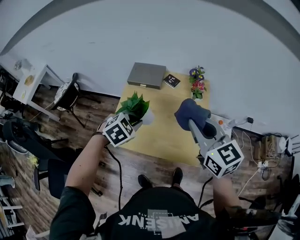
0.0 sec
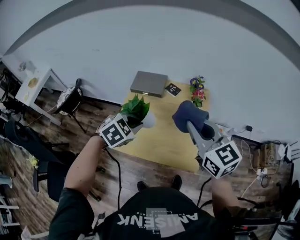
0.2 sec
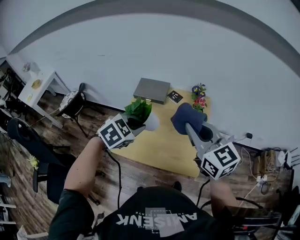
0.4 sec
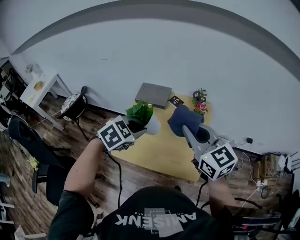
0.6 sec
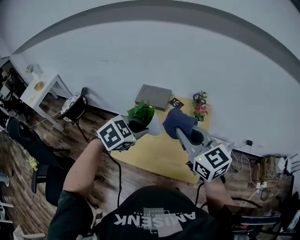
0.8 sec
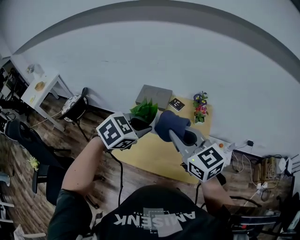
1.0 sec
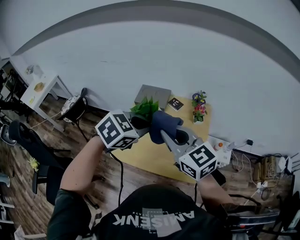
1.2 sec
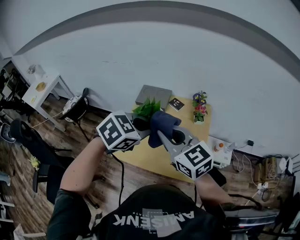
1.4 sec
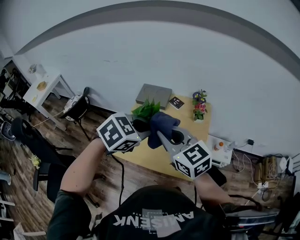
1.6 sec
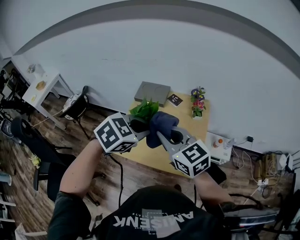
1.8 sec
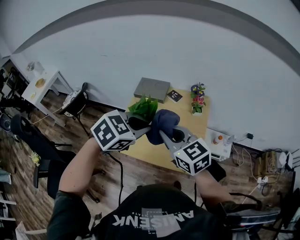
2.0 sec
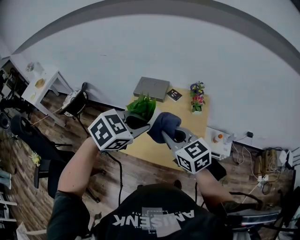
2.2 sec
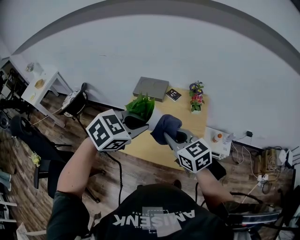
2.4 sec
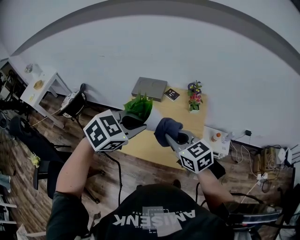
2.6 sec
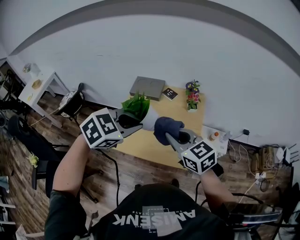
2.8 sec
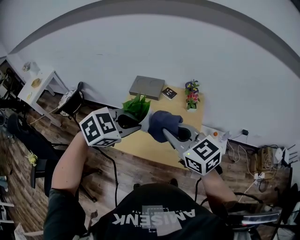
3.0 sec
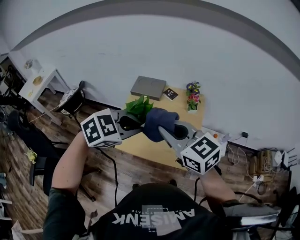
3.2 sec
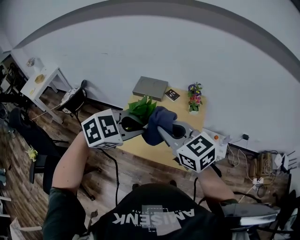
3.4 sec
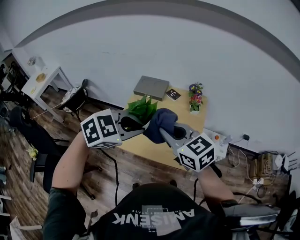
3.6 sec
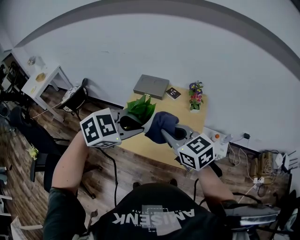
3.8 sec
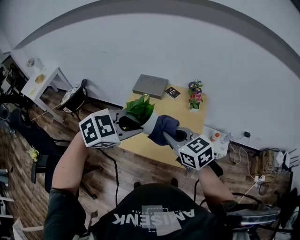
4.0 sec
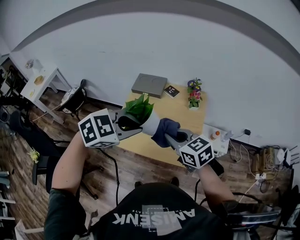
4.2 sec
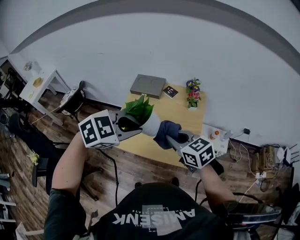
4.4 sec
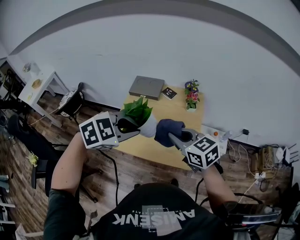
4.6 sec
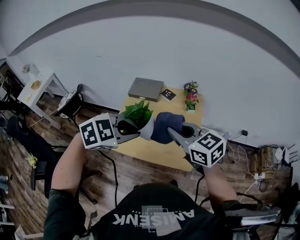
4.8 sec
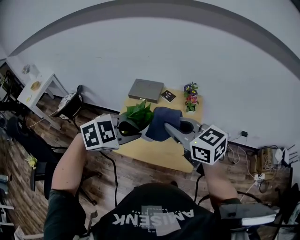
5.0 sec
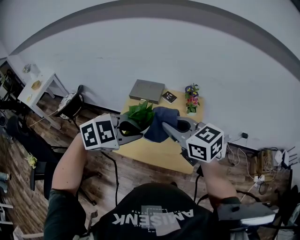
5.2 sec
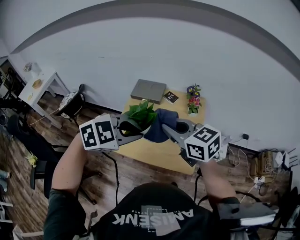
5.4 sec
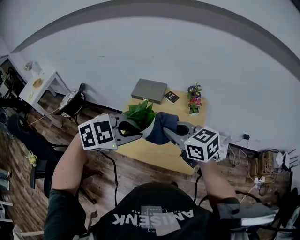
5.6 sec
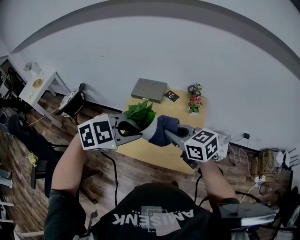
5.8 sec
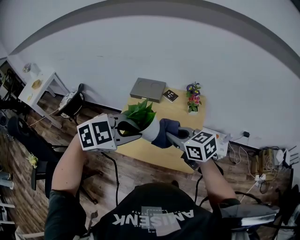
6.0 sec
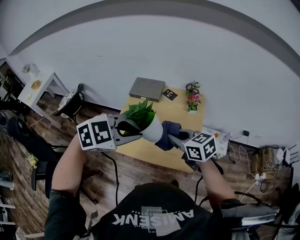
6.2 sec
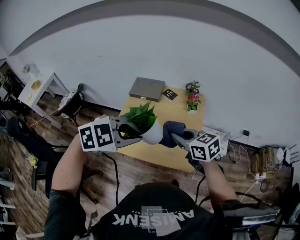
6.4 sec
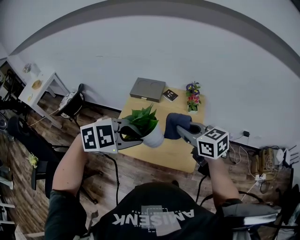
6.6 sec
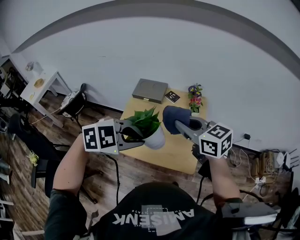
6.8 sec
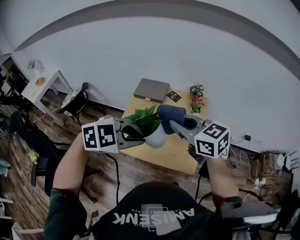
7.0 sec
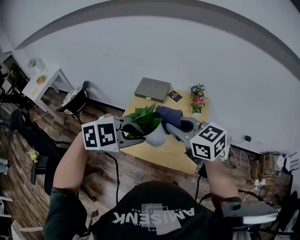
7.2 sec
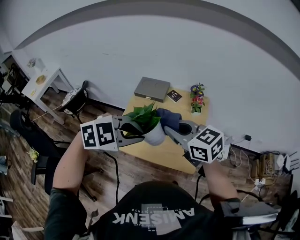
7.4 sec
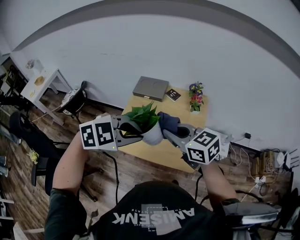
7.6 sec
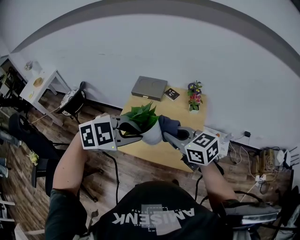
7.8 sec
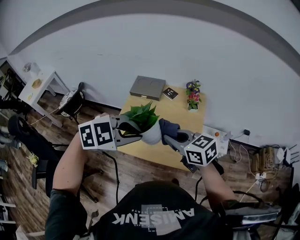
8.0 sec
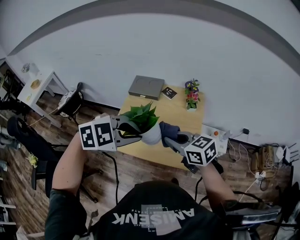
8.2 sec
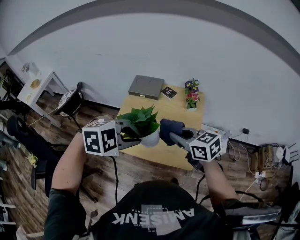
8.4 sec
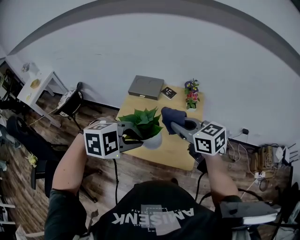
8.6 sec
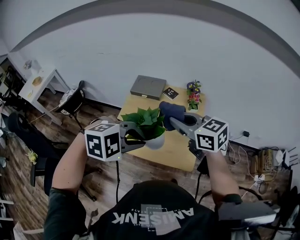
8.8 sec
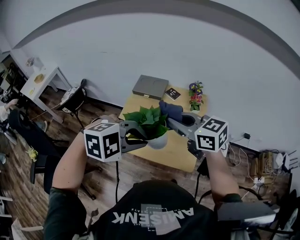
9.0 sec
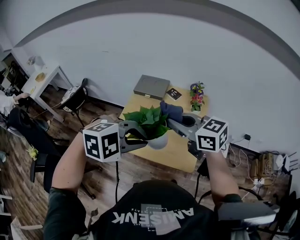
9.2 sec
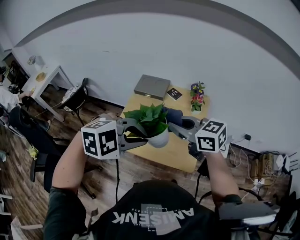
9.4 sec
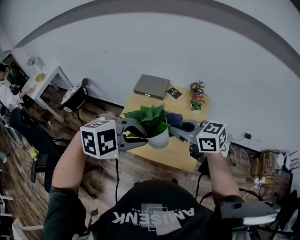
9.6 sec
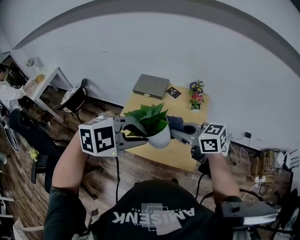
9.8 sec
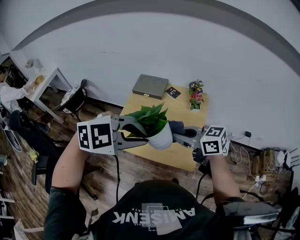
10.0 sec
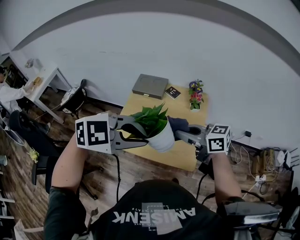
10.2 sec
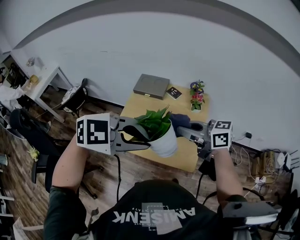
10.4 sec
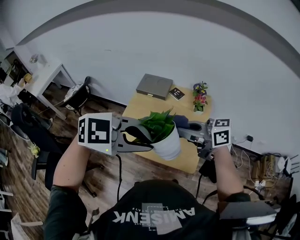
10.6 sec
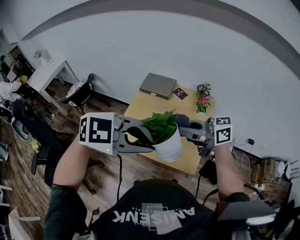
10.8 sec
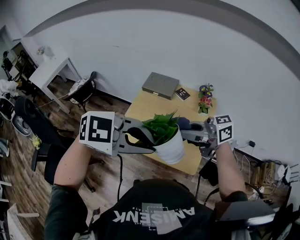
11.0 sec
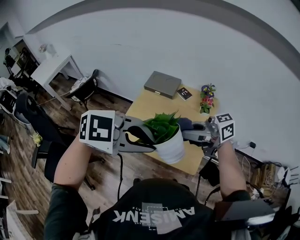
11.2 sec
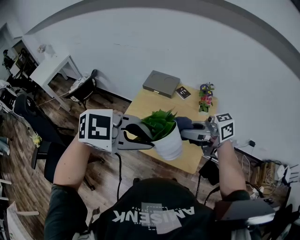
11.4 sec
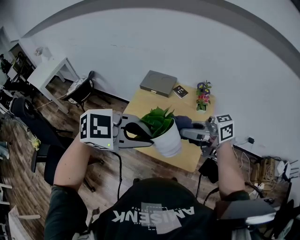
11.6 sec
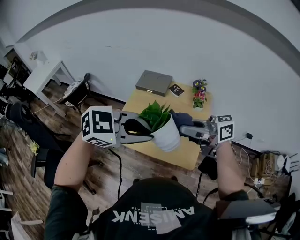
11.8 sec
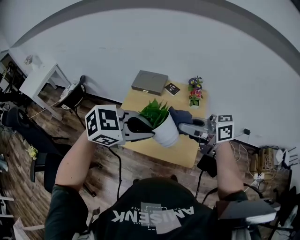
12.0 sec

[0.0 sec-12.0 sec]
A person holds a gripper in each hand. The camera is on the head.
0.0 sec to 1.6 sec: The right gripper moves to the left, approximately 10 cm, while the left gripper is displaced upward by approximately 15 cm.
1.6 sec to 3.0 sec: The left gripper shifts roughly 5 cm backward. Meanwhile the right gripper travels downward and back again, about 10 cm each way.
3.0 sec to 4.4 sec: The right gripper moves downward, some 10 cm.
4.4 sec to 6.0 sec: The right gripper moves about 10 cm upward and comes back.
9.0 sec to 10.4 sec: The left gripper shifts by approximately 5 cm, and turns by about 20 degrees.

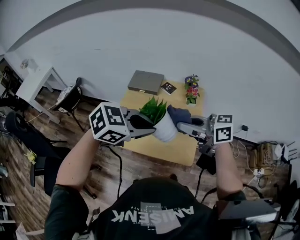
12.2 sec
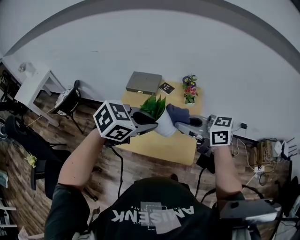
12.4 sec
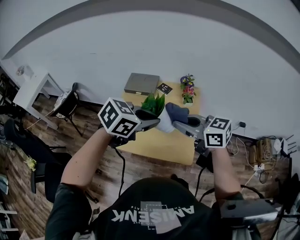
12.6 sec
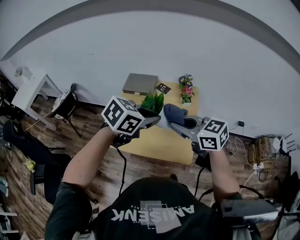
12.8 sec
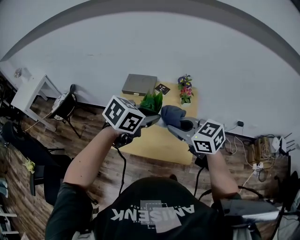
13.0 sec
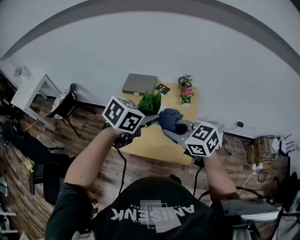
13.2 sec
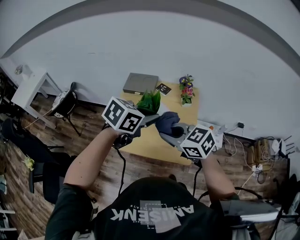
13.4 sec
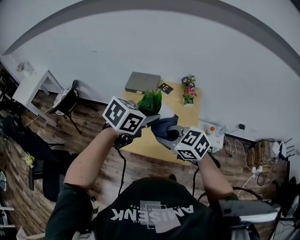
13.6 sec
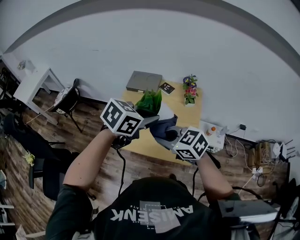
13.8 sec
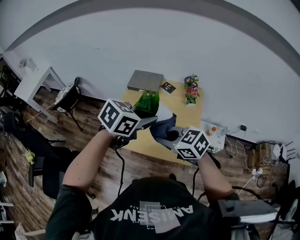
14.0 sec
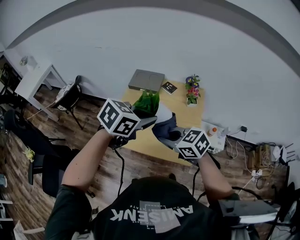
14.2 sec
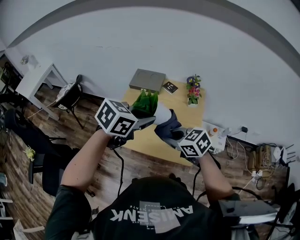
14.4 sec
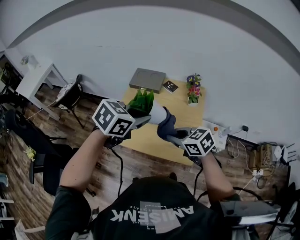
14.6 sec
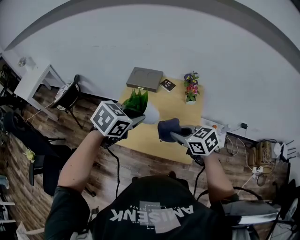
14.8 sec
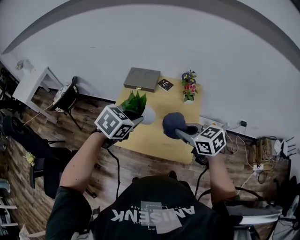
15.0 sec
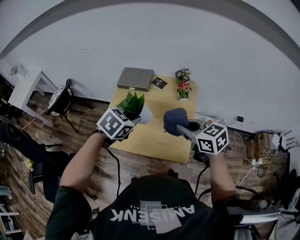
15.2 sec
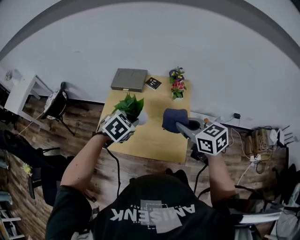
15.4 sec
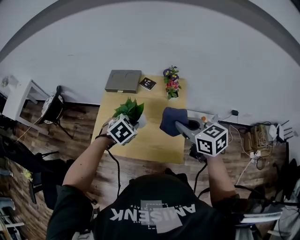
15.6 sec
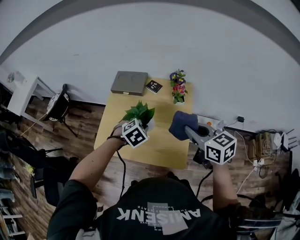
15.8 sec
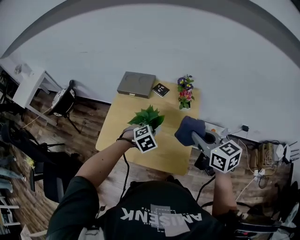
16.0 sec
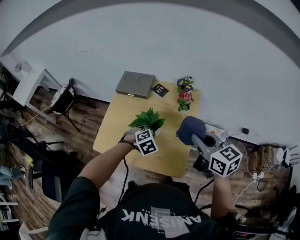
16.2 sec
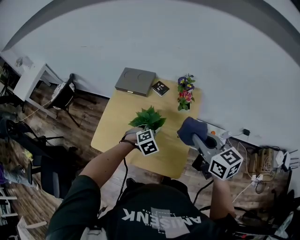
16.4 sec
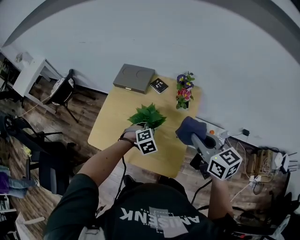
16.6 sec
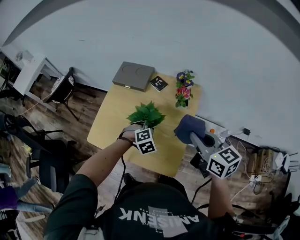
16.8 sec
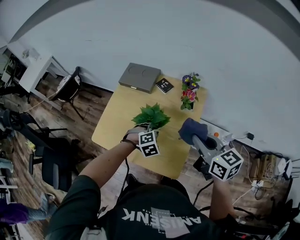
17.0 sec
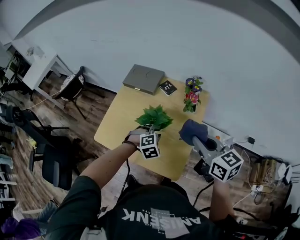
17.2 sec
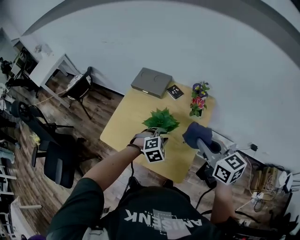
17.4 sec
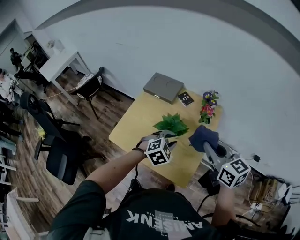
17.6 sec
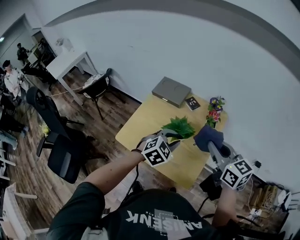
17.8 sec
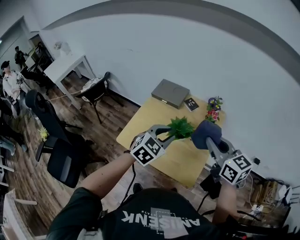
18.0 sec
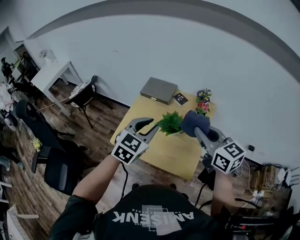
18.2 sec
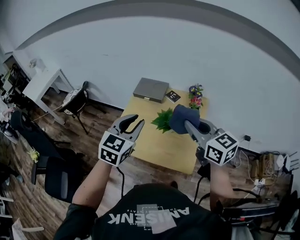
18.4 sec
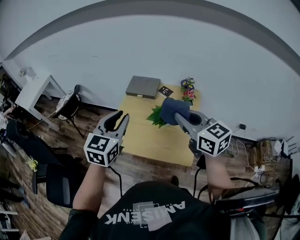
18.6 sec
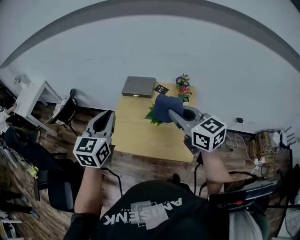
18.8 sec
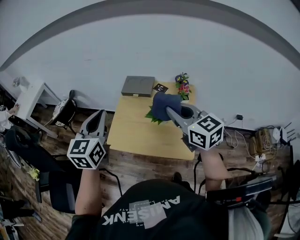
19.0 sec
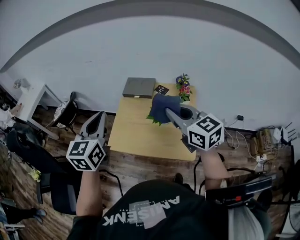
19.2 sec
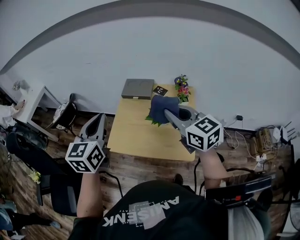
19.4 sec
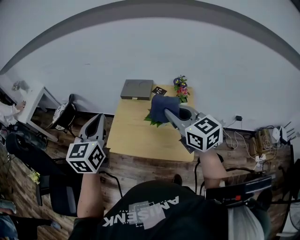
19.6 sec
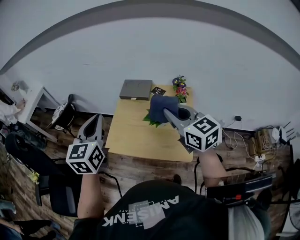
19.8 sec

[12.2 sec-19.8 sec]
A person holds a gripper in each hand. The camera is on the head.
12.2 sec to 13.8 sec: The right gripper changes place by approximately 10 cm, and rotates roughly 30 degrees, while the left gripper changes place by approximately 5 cm, and rotates roughly 20 degrees.
13.8 sec to 15.2 sec: The right gripper changes place by approximately 15 cm, and changes its angle by roughly 20 degrees. Meanwhile the left gripper is displaced downward by roughly 10 cm, and turns by approximately 20 degrees.
15.2 sec to 16.8 sec: The right gripper shifts about 15 cm to the right and forward, while the left gripper goes some 25 cm downward and to the right, and changes its angle by some 30 degrees.
16.8 sec to 18.2 sec: The left gripper is displaced upward and to the left by some 30 cm, and tilts its fingers about 40 degrees upward, while the right gripper travels to the left and upward by roughly 15 cm.
18.2 sec to 19.8 sec: The right gripper shifts about 10 cm to the left, while the left gripper shifts roughly 20 cm to the left and upward, changes its angle by approximately 30 degrees, and closes its fingers.

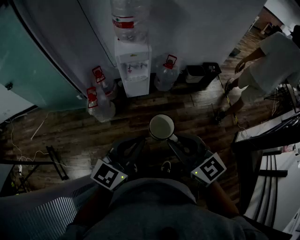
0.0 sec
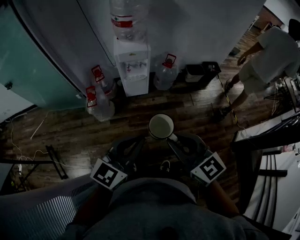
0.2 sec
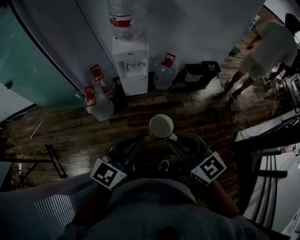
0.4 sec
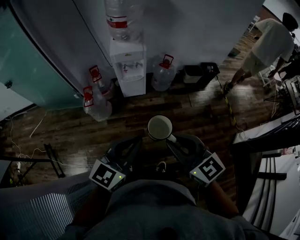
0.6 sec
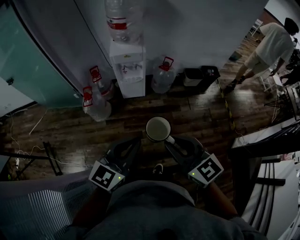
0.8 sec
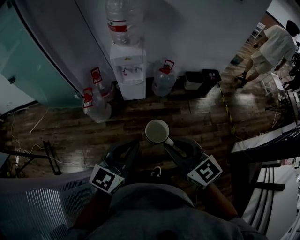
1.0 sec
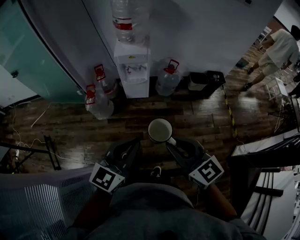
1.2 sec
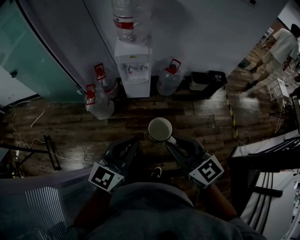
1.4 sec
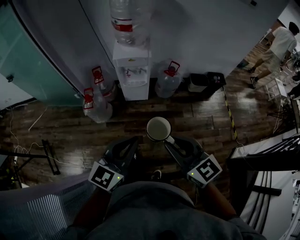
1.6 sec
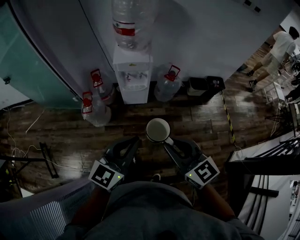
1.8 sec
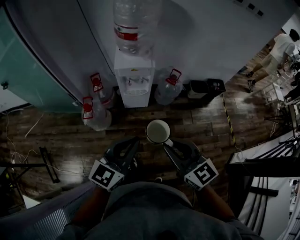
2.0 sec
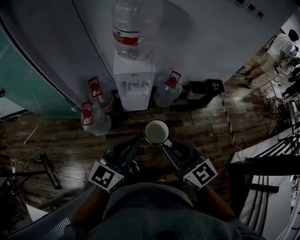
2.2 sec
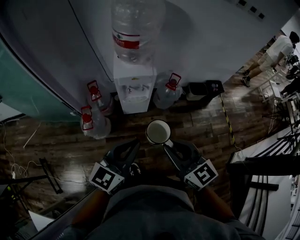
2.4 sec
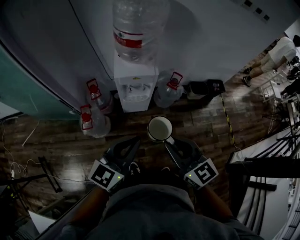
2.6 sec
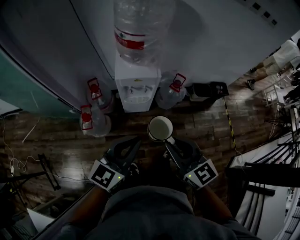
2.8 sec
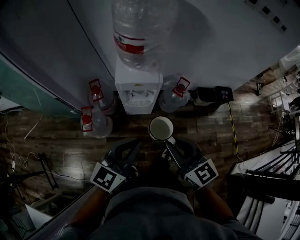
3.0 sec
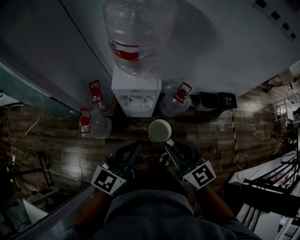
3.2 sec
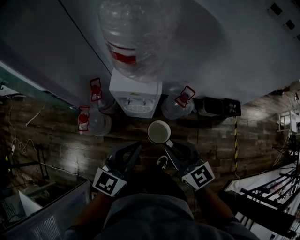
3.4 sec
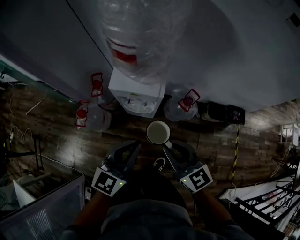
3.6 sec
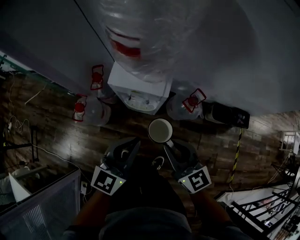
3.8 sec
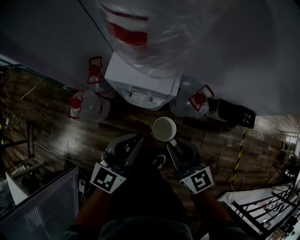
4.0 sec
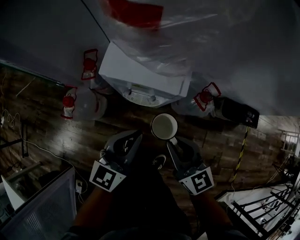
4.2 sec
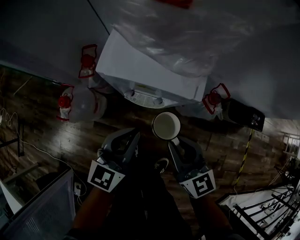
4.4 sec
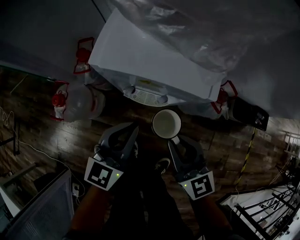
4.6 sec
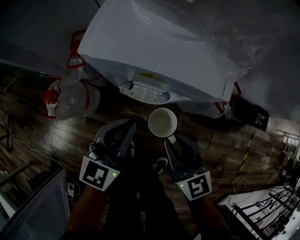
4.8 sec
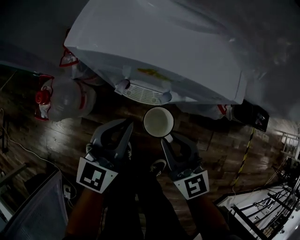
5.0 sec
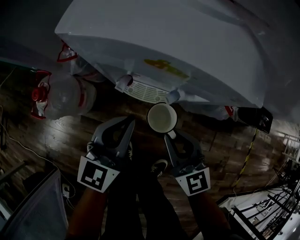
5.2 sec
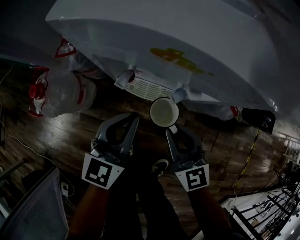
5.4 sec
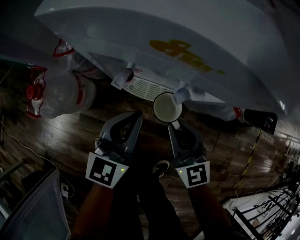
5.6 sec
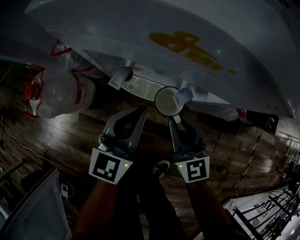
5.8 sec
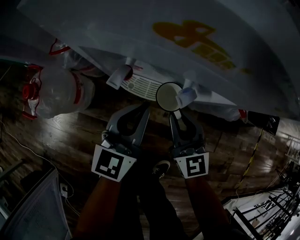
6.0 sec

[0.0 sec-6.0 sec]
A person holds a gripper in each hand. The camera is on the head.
0.0 sec to 1.6 sec: The two grippers go roughly 10 cm forward and to the right.
1.6 sec to 3.0 sec: The two grippers go roughly 25 cm forward.
3.0 sec to 4.4 sec: Both grippers move downward and forward, some 40 cm. The left gripper changes its angle by roughly 20 degrees.
4.4 sec to 6.0 sec: The two grippers go some 25 cm downward.
